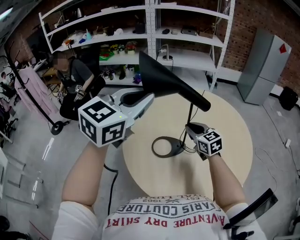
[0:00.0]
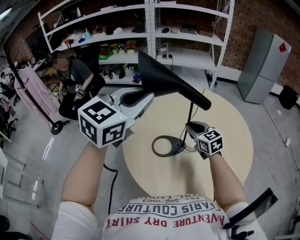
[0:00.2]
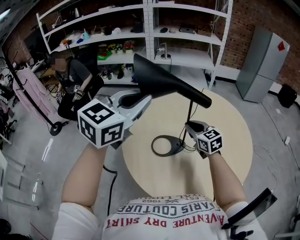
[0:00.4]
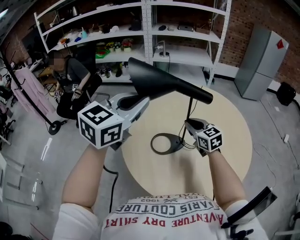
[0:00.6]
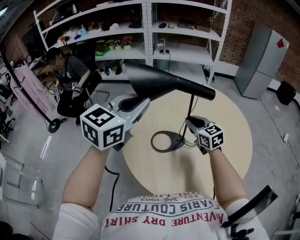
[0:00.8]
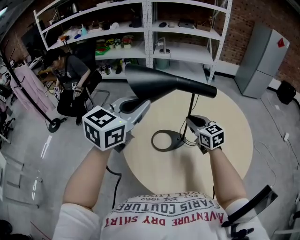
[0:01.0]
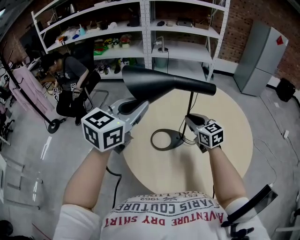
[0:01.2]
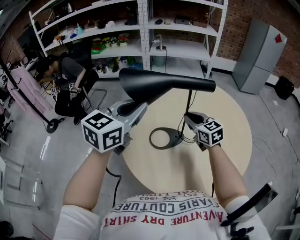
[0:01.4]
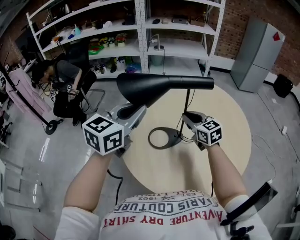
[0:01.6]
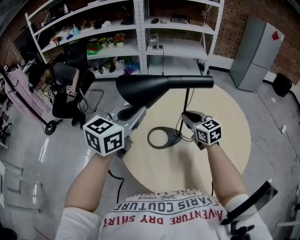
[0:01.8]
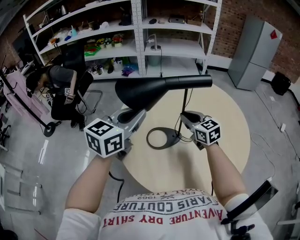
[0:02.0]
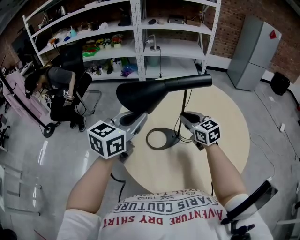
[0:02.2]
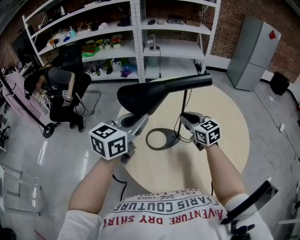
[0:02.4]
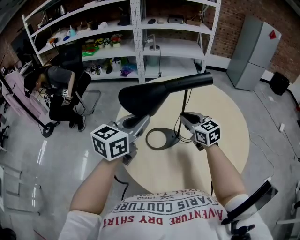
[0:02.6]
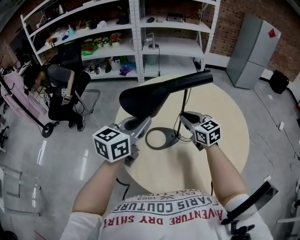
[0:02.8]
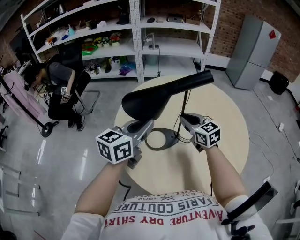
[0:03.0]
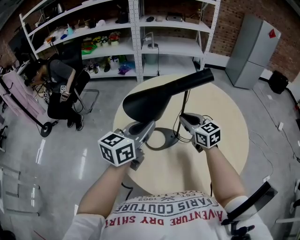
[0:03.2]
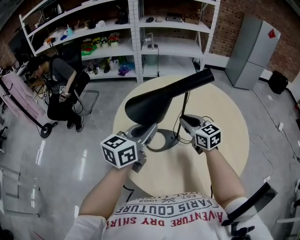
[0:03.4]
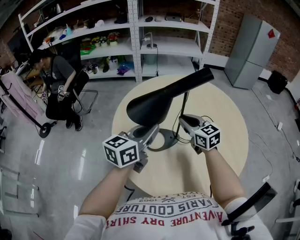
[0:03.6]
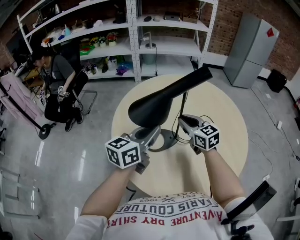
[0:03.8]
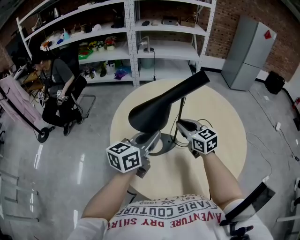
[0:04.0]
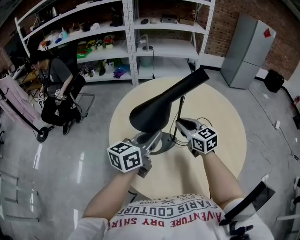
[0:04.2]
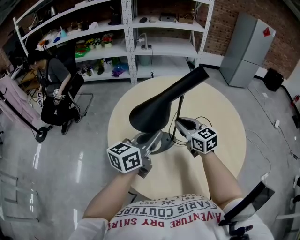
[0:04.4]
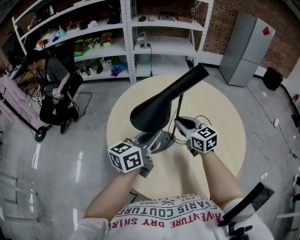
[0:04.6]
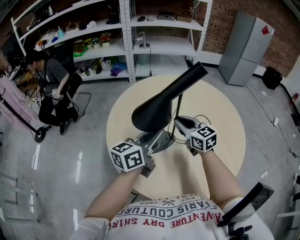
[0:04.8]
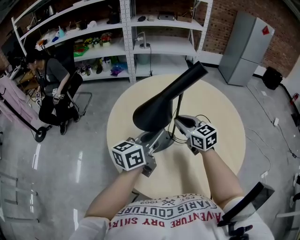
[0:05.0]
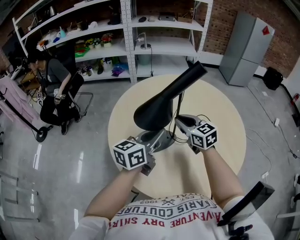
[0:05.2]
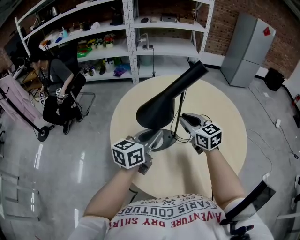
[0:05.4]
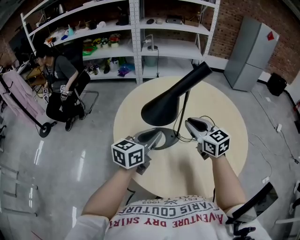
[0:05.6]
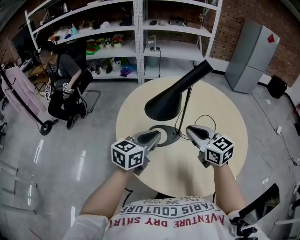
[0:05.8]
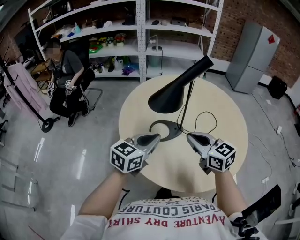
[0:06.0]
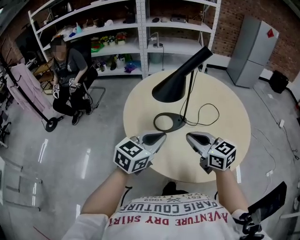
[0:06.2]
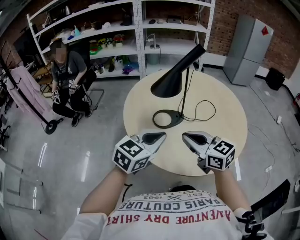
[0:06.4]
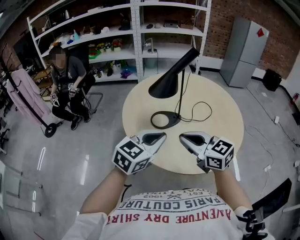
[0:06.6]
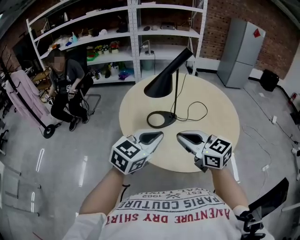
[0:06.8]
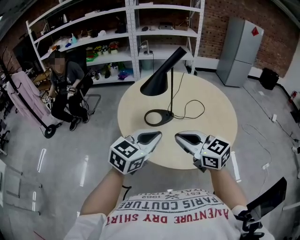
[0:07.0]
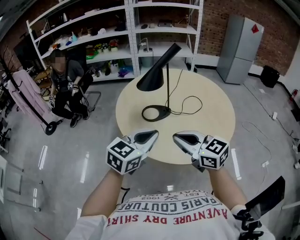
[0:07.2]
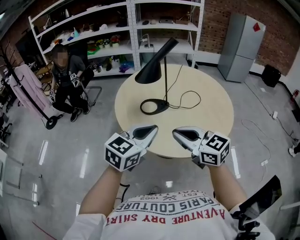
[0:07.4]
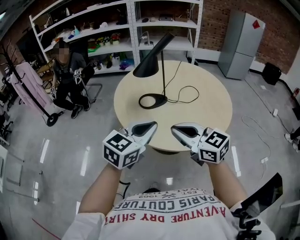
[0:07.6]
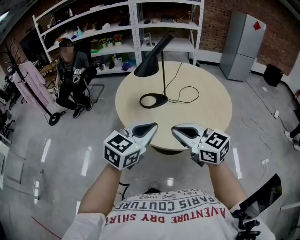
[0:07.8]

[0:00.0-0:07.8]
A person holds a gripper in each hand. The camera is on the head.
0:00.0 to 0:01.6: The left gripper travels downward by about 10 cm.
0:01.6 to 0:03.2: The left gripper travels downward by some 10 cm.
0:03.2 to 0:04.6: The left gripper travels to the right by some 5 cm.
0:04.6 to 0:06.2: Both grippers move backward, about 20 cm. The left gripper rotates some 30 degrees.
0:06.2 to 0:07.8: The left gripper heads backward and to the right, covering some 20 cm; the right gripper is displaced backward by roughly 20 cm.

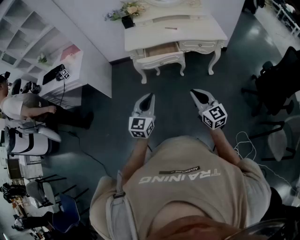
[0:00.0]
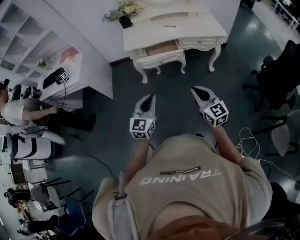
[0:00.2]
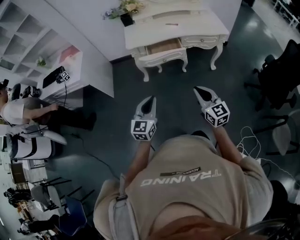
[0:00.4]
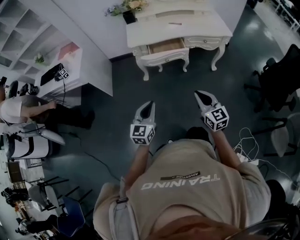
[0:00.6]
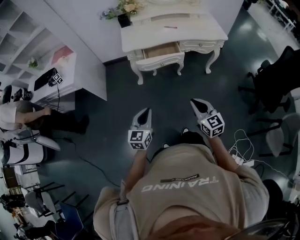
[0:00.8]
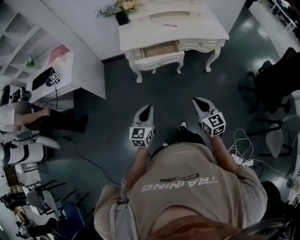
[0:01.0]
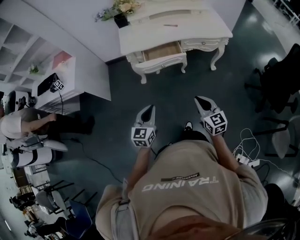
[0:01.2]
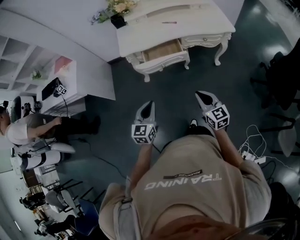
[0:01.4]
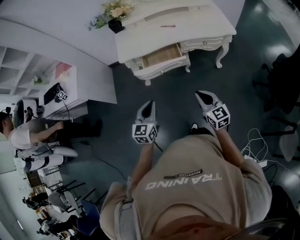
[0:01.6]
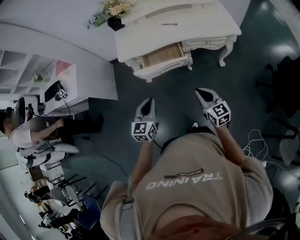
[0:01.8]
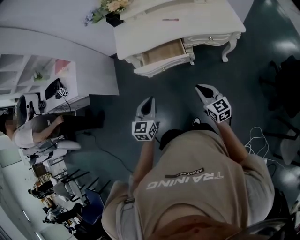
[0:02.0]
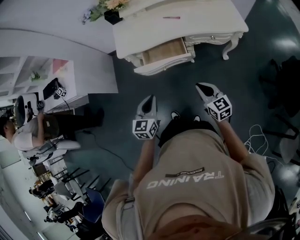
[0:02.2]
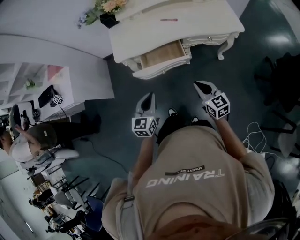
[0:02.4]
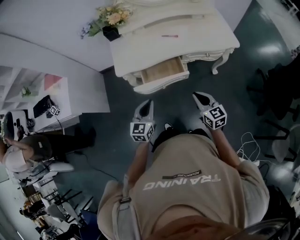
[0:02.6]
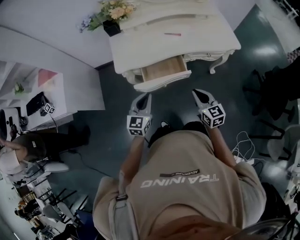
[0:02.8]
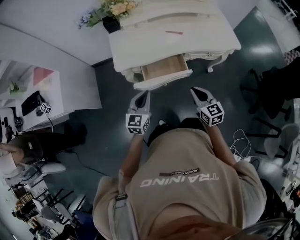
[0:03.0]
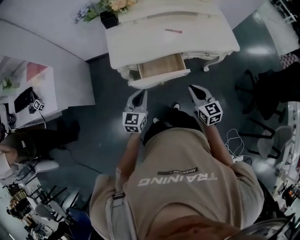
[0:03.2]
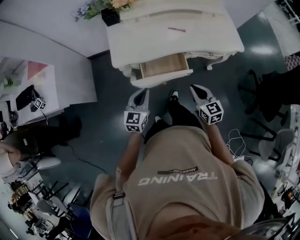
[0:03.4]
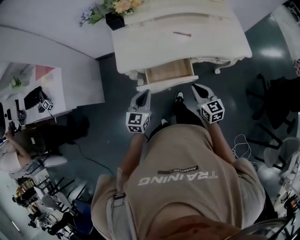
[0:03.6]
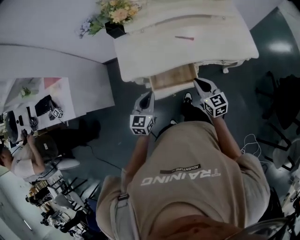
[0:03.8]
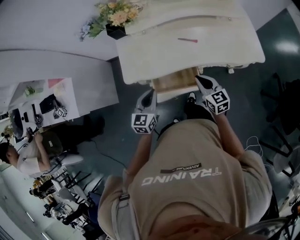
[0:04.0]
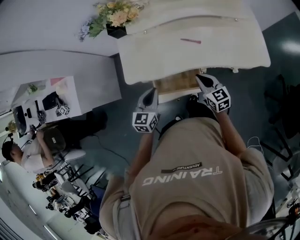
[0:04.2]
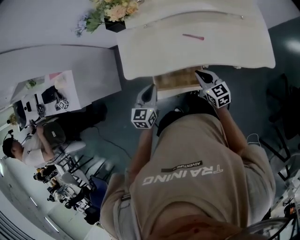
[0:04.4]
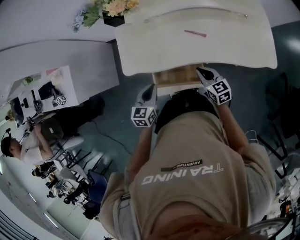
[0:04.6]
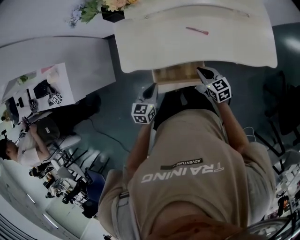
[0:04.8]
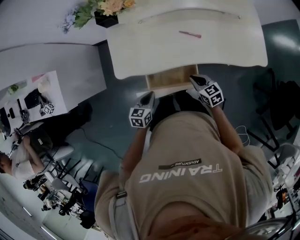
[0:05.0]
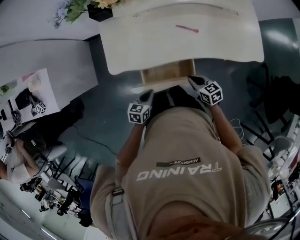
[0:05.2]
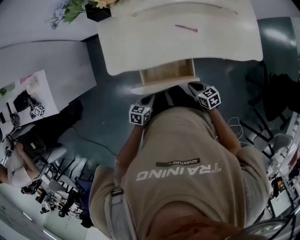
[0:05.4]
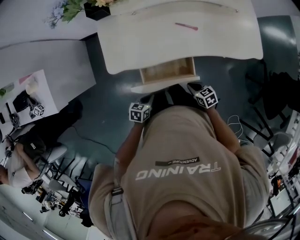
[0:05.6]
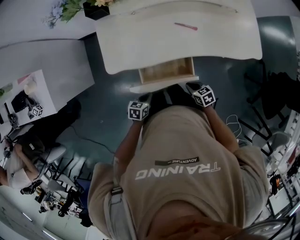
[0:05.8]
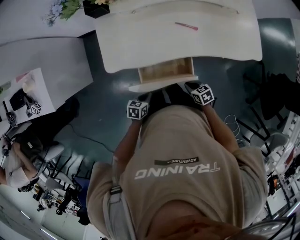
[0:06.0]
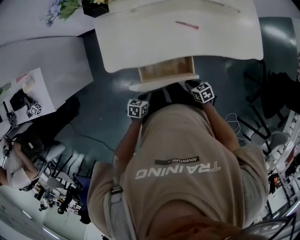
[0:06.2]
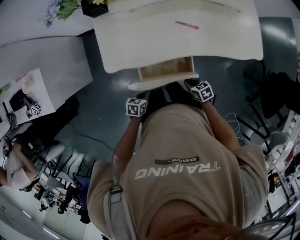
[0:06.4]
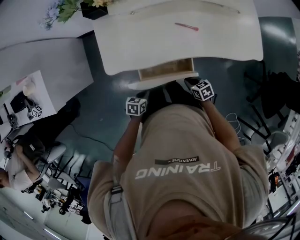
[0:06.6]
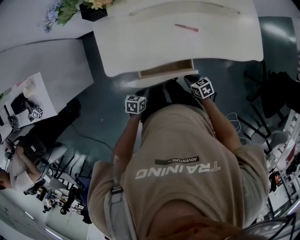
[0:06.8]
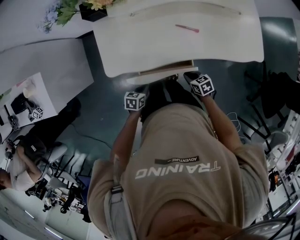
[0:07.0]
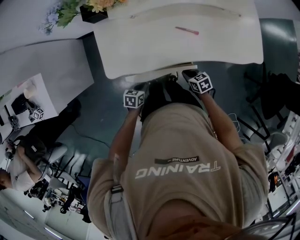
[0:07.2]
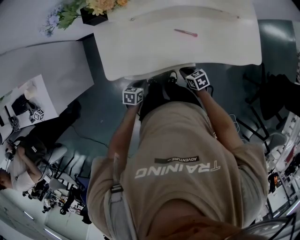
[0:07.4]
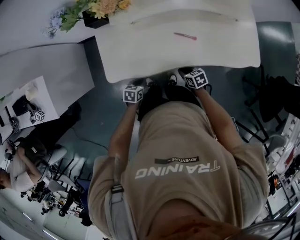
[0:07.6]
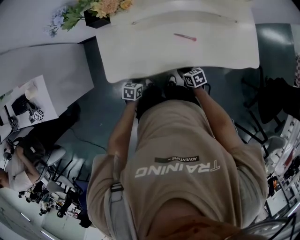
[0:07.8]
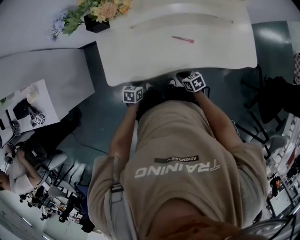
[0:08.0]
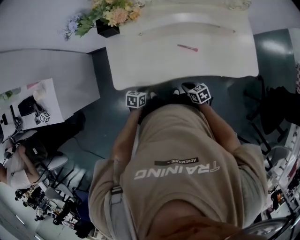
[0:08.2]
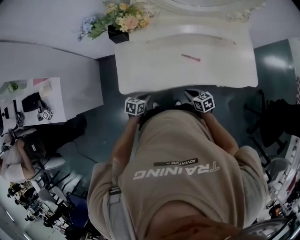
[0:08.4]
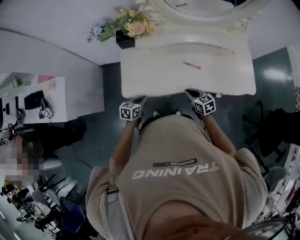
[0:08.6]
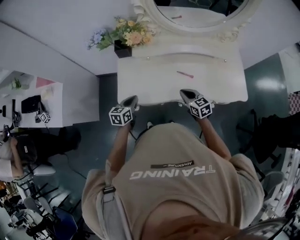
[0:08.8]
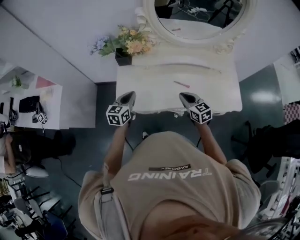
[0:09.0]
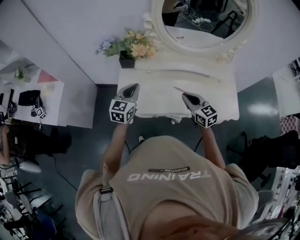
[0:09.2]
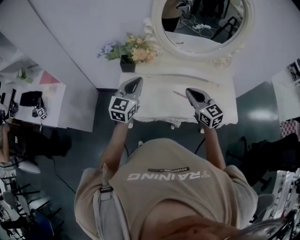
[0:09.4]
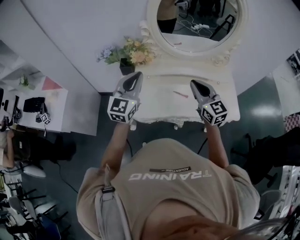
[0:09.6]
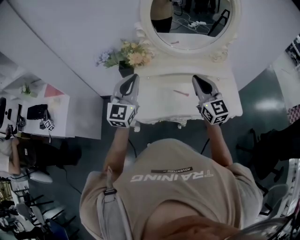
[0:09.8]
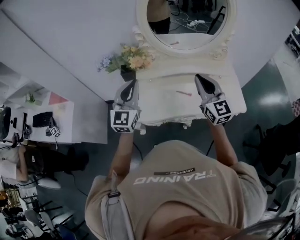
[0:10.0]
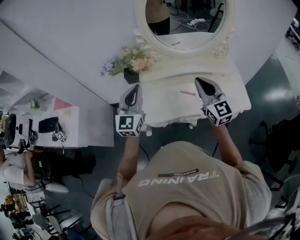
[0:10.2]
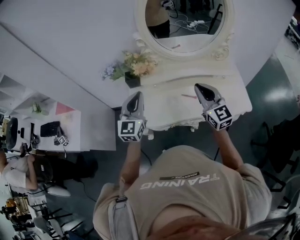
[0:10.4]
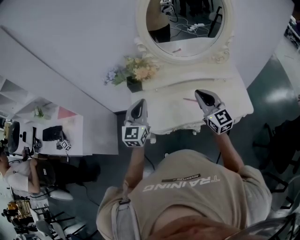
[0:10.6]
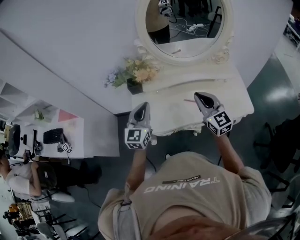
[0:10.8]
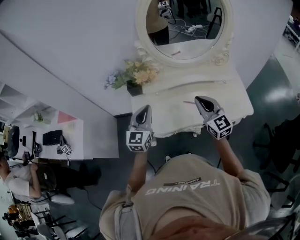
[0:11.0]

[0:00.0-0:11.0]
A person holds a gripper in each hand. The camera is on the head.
0:00.0 to 0:01.6: Both grippers move forward and downward, approximately 20 cm.
0:01.6 to 0:03.2: The left gripper moves forward, approximately 25 cm. Meanwhile the right gripper is displaced forward and to the left by about 25 cm.
0:03.2 to 0:04.8: Both grippers move forward and downward, roughly 25 cm. The right gripper turns by about 20 degrees; the left gripper rotates approximately 20 degrees.
0:04.8 to 0:06.2: Both grippers travel together downward, roughly 15 cm. The left gripper changes its angle by some 30 degrees; the right gripper rotates approximately 30 degrees.
0:06.2 to 0:07.8: The right gripper ends up about 15 cm from where it was; the left gripper ends up roughly 15 cm from where it was.
0:07.8 to 0:09.4: Both grippers move upward, approximately 40 cm. The right gripper angles its fingers upward, by roughly 40 degrees; the left gripper points its fingers approximately 50 degrees further upward.
0:09.4 to 0:11.0: The left gripper goes upward and returns, some 10 cm each way.

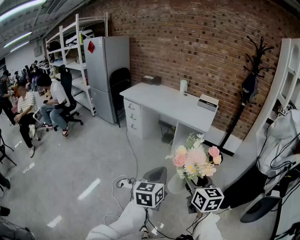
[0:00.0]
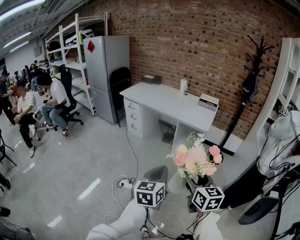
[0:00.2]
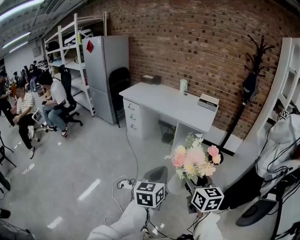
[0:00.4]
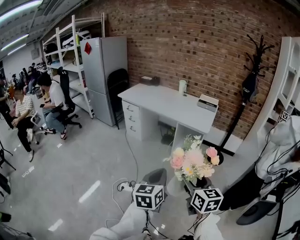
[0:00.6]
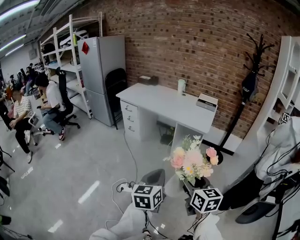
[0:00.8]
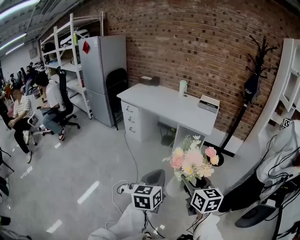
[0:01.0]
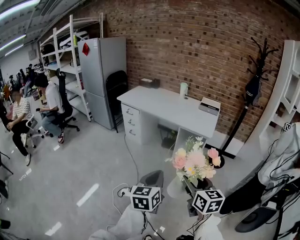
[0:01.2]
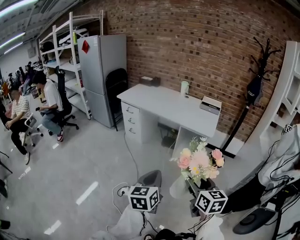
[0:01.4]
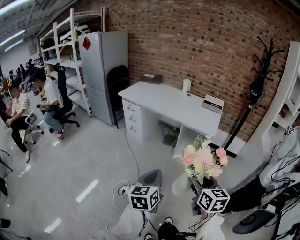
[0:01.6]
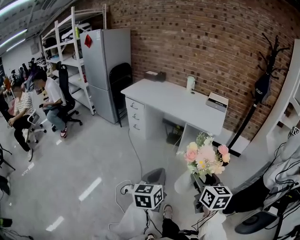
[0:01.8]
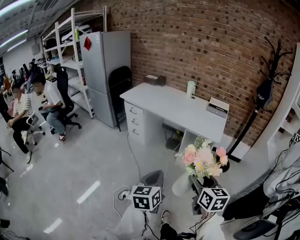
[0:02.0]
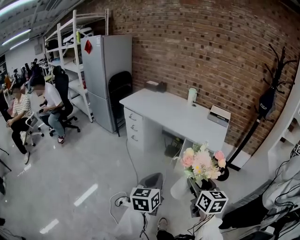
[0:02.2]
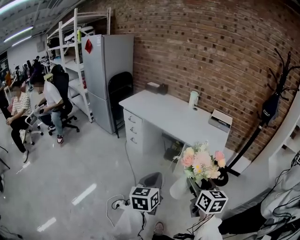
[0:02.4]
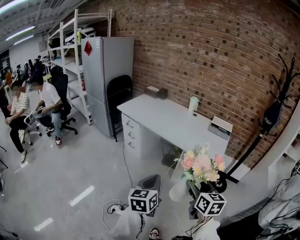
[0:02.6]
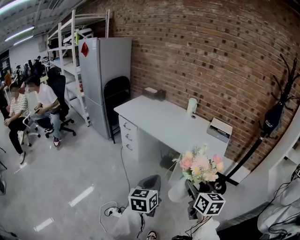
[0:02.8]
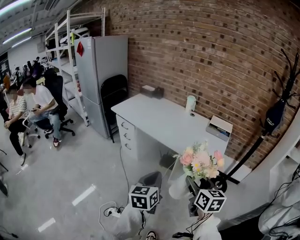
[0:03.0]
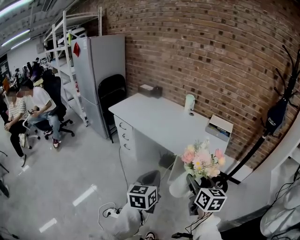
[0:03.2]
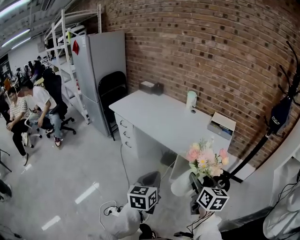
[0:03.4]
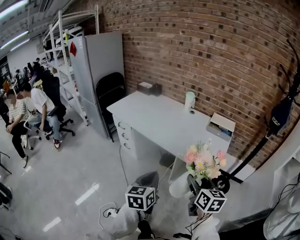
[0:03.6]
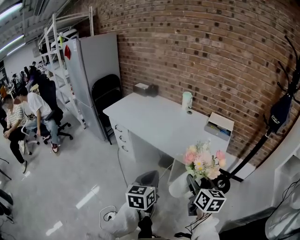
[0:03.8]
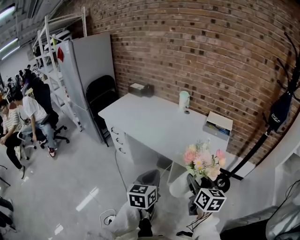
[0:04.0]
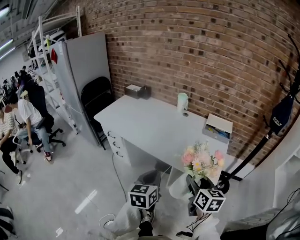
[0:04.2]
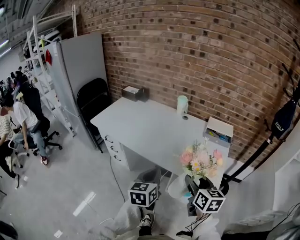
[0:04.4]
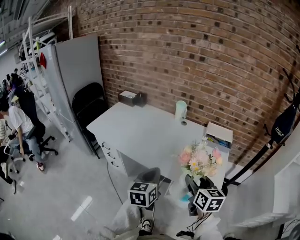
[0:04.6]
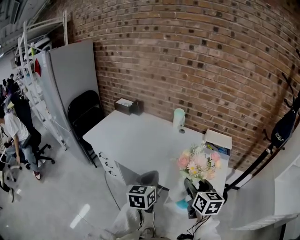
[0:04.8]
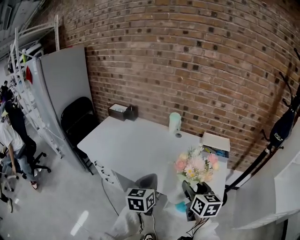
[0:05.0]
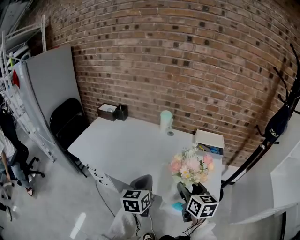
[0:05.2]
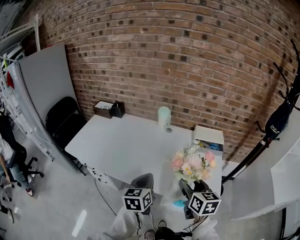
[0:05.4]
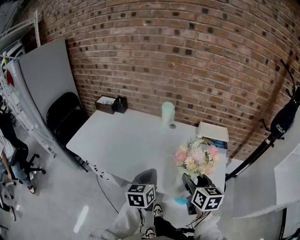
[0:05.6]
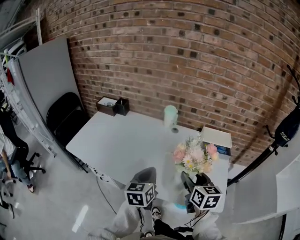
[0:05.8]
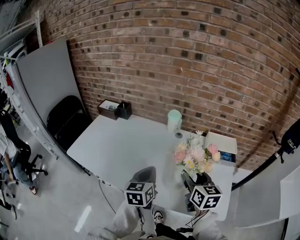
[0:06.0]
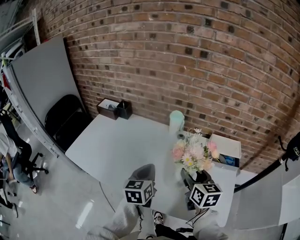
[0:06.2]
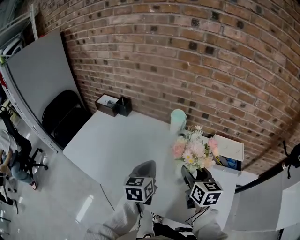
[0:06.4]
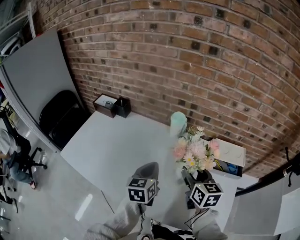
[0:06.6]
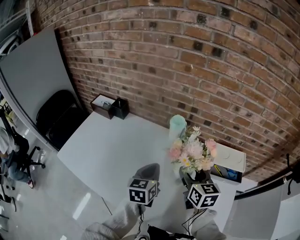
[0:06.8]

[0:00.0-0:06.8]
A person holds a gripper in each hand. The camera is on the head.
0:00.0 to 0:01.4: The left gripper goes approximately 10 cm to the left and forward; the right gripper heads forward, covering approximately 10 cm.
0:01.4 to 0:02.8: The two grippers go about 25 cm forward.
0:02.8 to 0:04.0: The two grippers go about 15 cm forward and to the right.
0:04.0 to 0:05.4: The two grippers go some 25 cm forward.
0:05.4 to 0:06.8: Both grippers travel together forward, roughly 25 cm.
